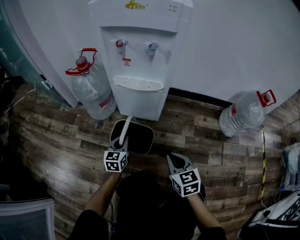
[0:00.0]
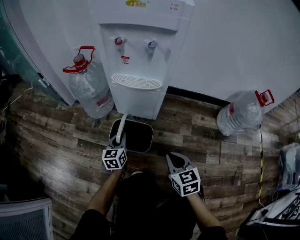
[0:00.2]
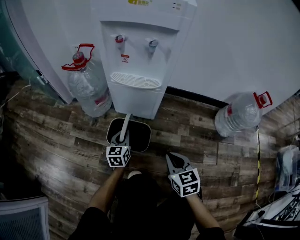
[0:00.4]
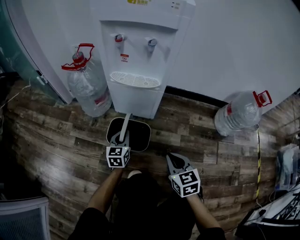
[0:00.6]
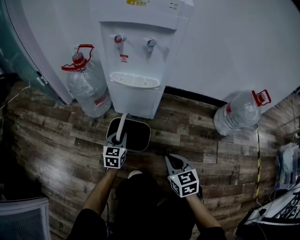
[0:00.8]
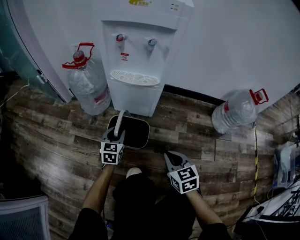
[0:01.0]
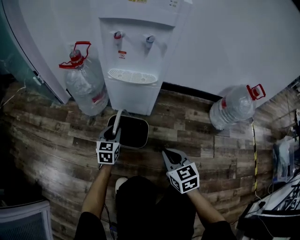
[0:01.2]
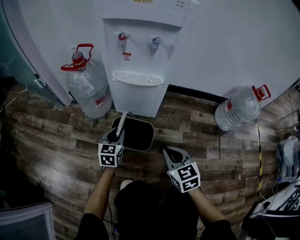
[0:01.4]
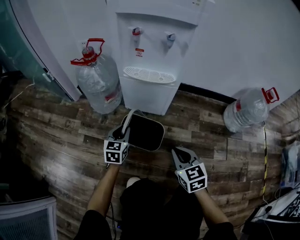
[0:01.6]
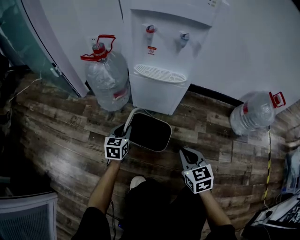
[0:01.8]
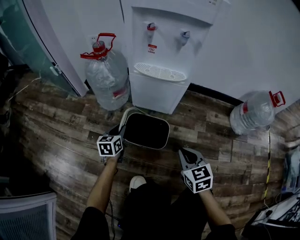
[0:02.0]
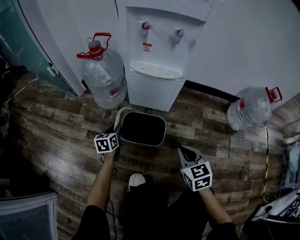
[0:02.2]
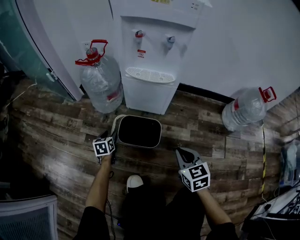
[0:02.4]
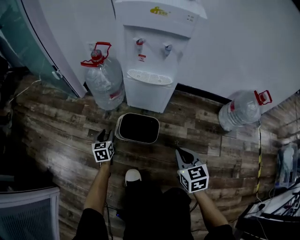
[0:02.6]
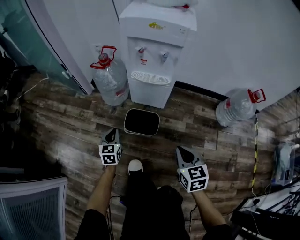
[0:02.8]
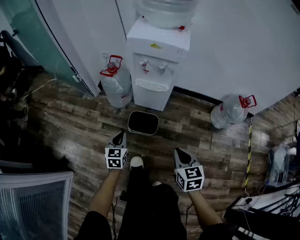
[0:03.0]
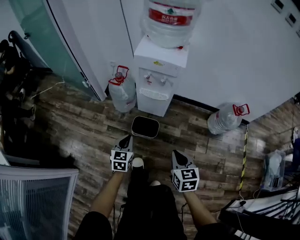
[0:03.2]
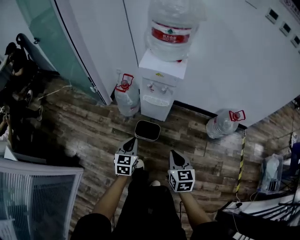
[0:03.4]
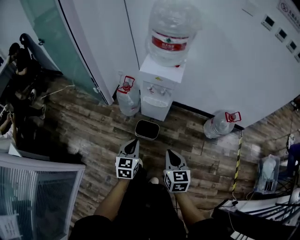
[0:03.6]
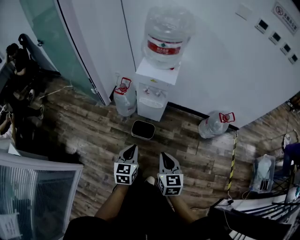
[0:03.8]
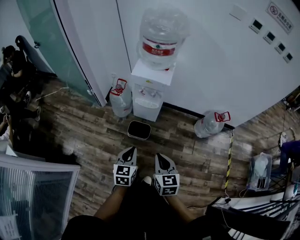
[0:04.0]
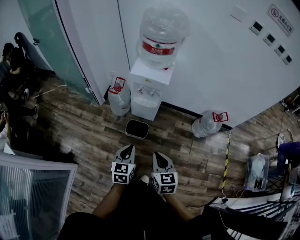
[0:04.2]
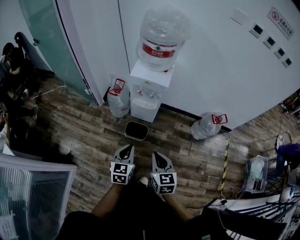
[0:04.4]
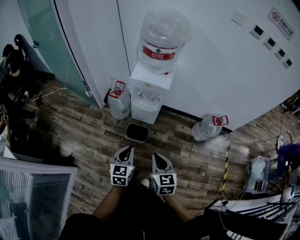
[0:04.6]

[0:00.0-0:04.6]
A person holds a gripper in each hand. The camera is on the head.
0:00.0 to 0:01.6: The grippers stay close to where they were, moving slightly.
0:01.6 to 0:03.0: The two grippers go approximately 30 cm upward and backward. The left gripper opens, then closes once more.
0:03.0 to 0:04.6: Both grippers travel together upward, approximately 30 cm.

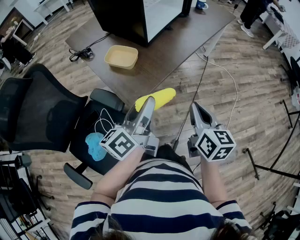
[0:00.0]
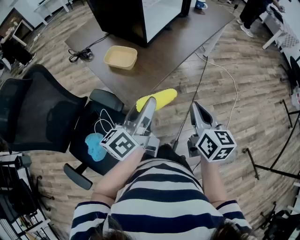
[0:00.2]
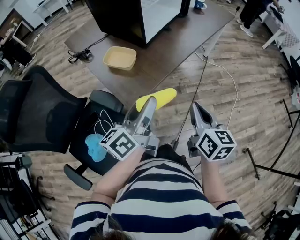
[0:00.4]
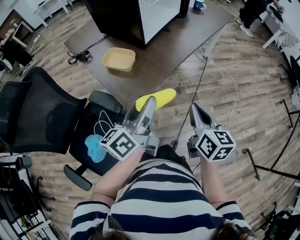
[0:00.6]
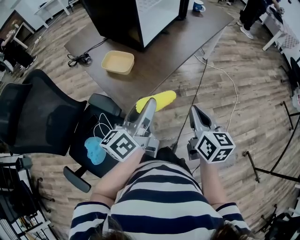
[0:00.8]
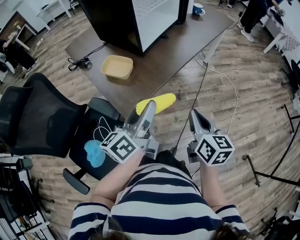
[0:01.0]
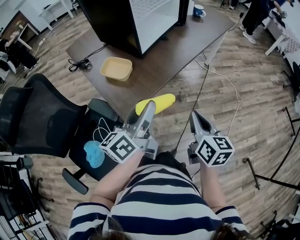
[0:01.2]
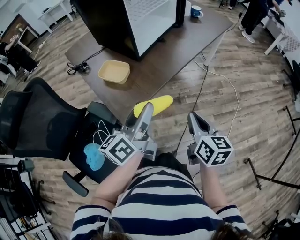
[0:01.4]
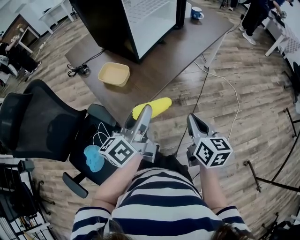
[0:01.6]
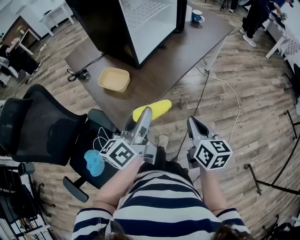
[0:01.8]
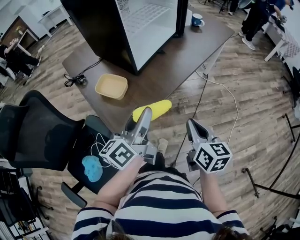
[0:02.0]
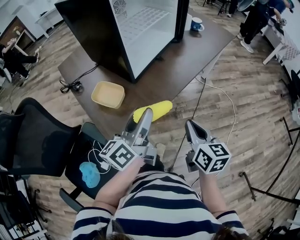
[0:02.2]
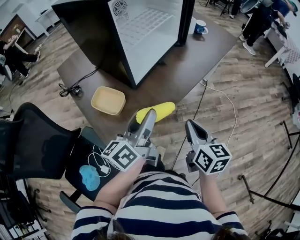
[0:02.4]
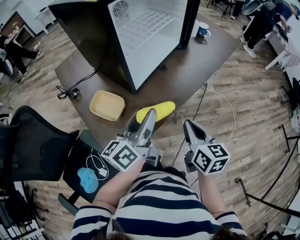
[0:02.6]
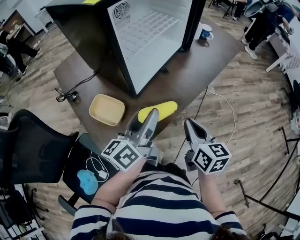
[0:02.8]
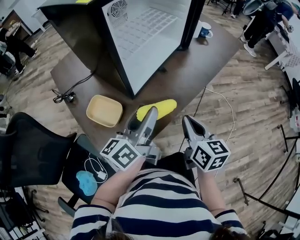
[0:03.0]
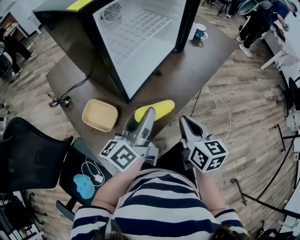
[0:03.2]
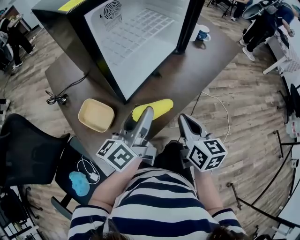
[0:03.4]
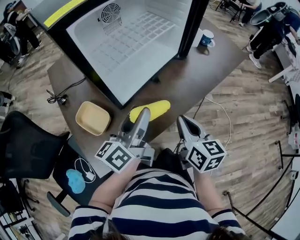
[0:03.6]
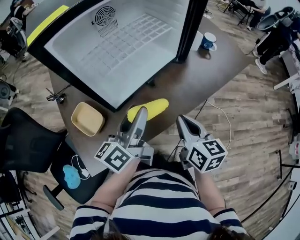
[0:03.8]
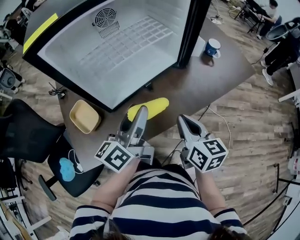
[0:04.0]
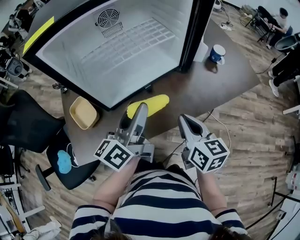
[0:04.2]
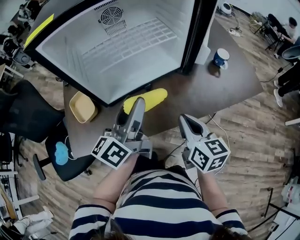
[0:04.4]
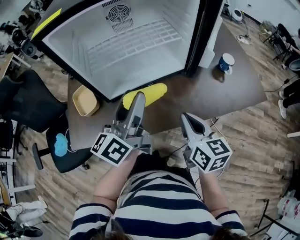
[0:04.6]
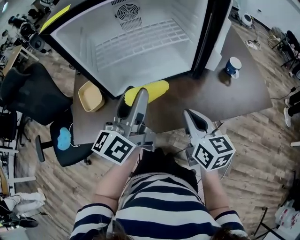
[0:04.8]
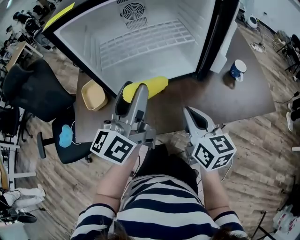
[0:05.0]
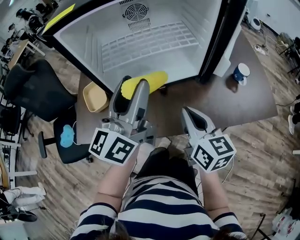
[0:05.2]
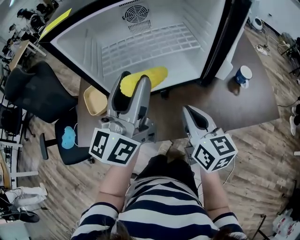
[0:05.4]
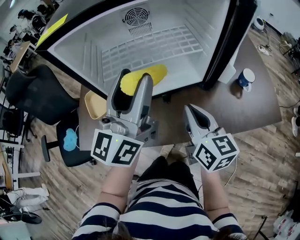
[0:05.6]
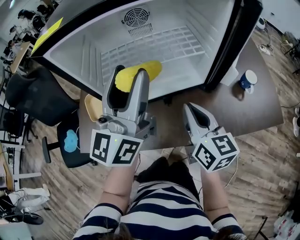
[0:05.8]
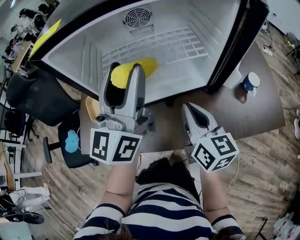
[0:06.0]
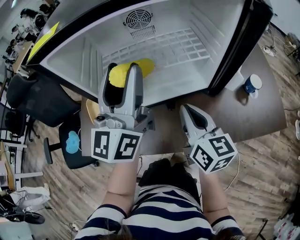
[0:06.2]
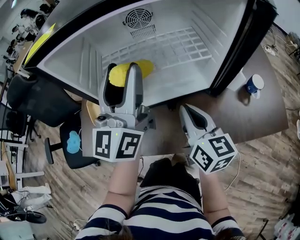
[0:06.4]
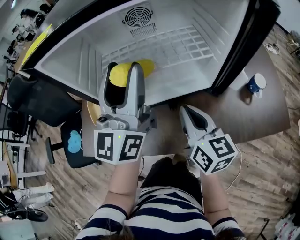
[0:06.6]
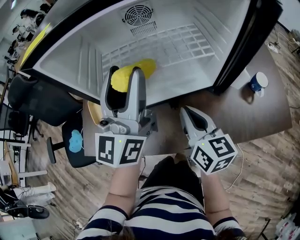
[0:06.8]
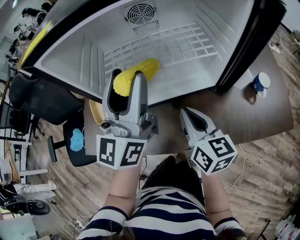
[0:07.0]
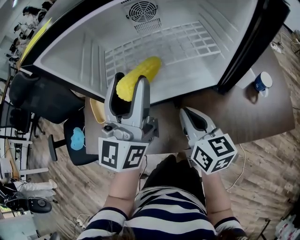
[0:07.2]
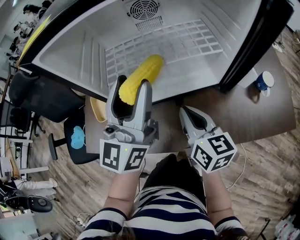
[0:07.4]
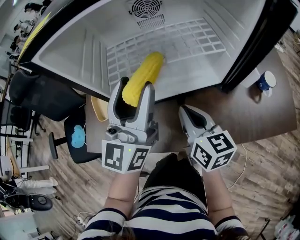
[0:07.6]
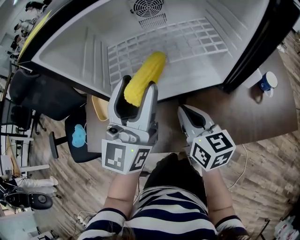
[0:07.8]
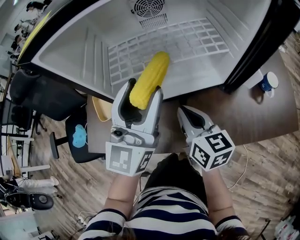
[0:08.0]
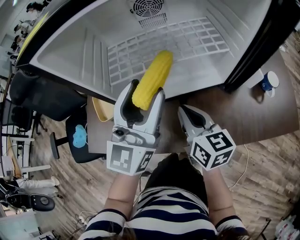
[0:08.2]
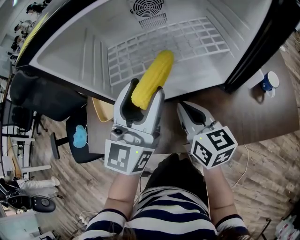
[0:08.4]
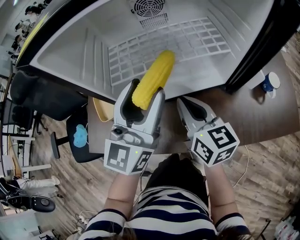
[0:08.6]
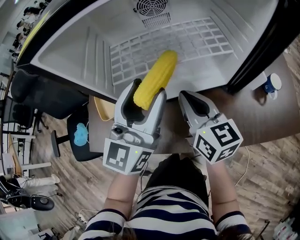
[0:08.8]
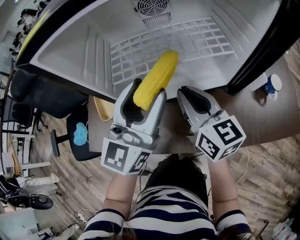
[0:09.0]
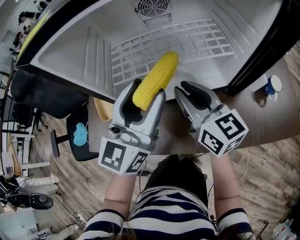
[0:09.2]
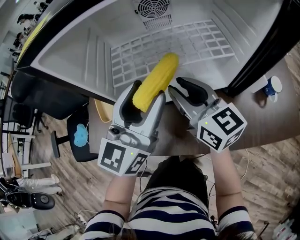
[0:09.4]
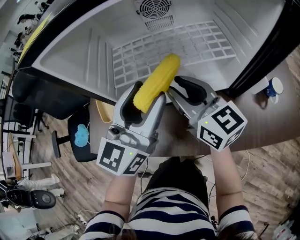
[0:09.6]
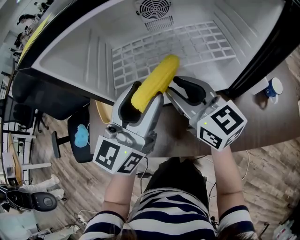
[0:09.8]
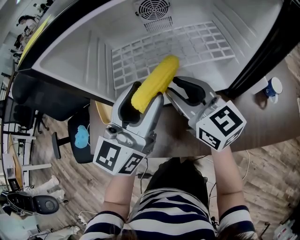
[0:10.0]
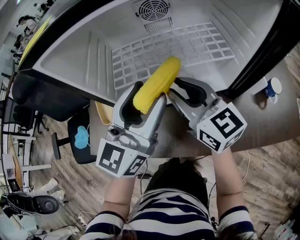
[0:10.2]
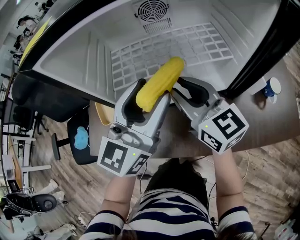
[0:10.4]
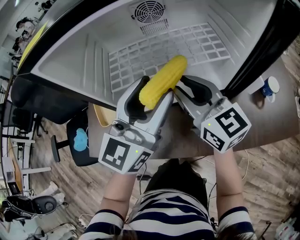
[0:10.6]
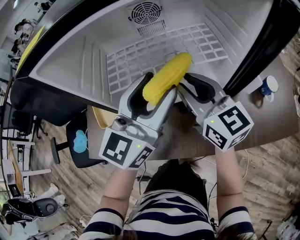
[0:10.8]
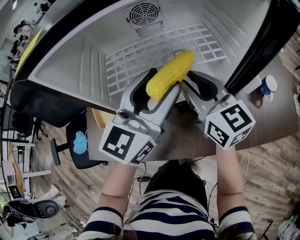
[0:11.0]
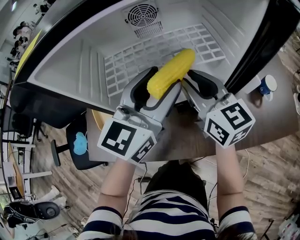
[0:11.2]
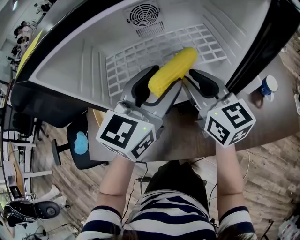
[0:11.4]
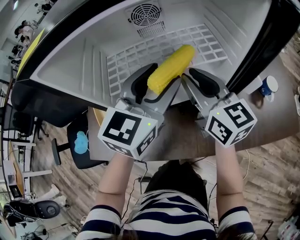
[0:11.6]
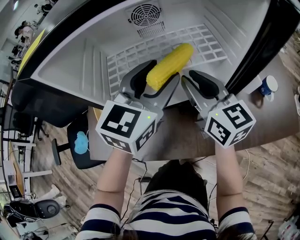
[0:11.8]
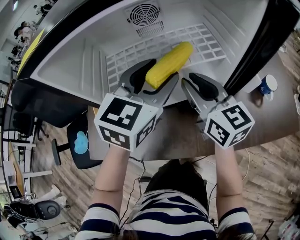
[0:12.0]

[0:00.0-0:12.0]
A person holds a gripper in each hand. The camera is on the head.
0:00.0 to 0:01.6: The left gripper moves about 5 cm; the right gripper goes about 5 cm to the right.
0:01.6 to 0:03.0: Both grippers travel together forward, roughly 25 cm.
0:03.0 to 0:04.4: The right gripper changes place by about 20 cm, and turns by approximately 30 degrees; the left gripper changes place by about 15 cm, and swivels roughly 30 degrees.
0:04.4 to 0:06.0: The right gripper is displaced forward by some 10 cm. Meanwhile the left gripper moves upward and forward, about 15 cm, and changes its angle by roughly 40 degrees.
0:06.0 to 0:07.6: Both grippers travel together downward, approximately 5 cm.
0:07.6 to 0:09.0: The right gripper changes place by approximately 5 cm.
0:09.0 to 0:10.4: The right gripper opens its fingers.
0:10.4 to 0:12.0: The right gripper goes some 5 cm to the right; the left gripper is displaced forward and to the right by approximately 10 cm, and turns by approximately 30 degrees.

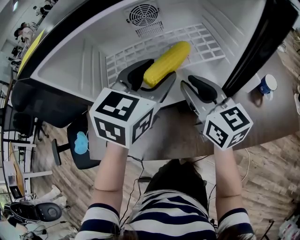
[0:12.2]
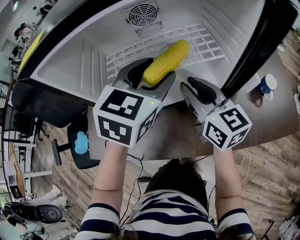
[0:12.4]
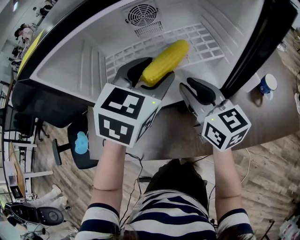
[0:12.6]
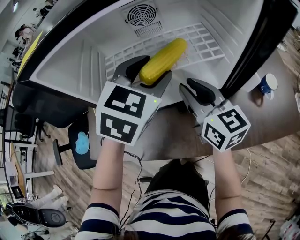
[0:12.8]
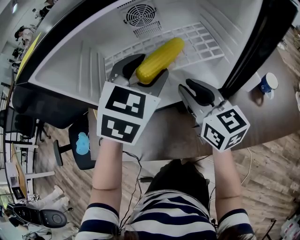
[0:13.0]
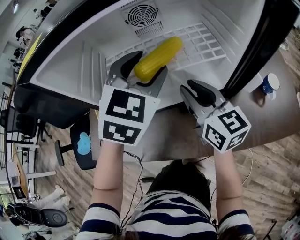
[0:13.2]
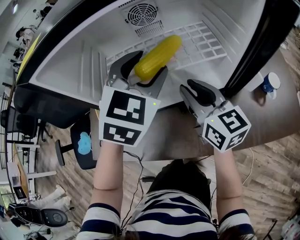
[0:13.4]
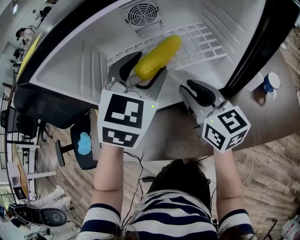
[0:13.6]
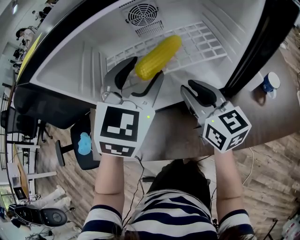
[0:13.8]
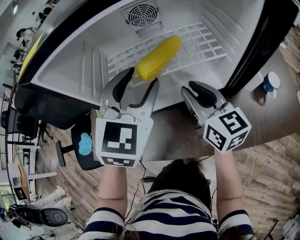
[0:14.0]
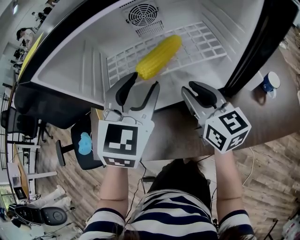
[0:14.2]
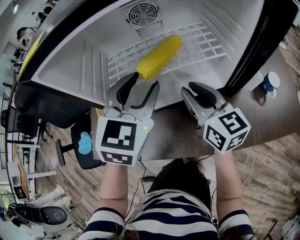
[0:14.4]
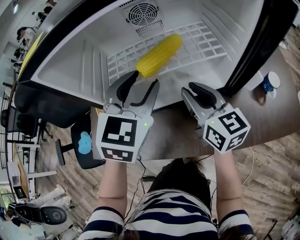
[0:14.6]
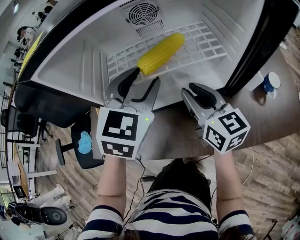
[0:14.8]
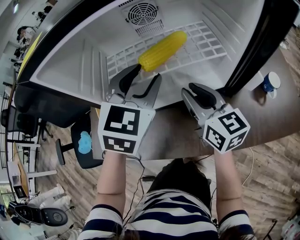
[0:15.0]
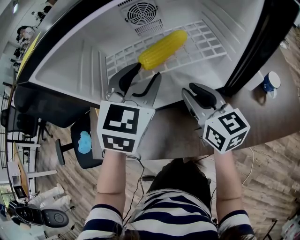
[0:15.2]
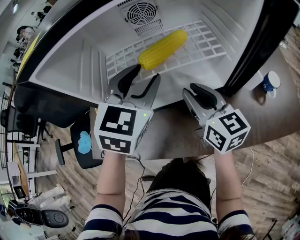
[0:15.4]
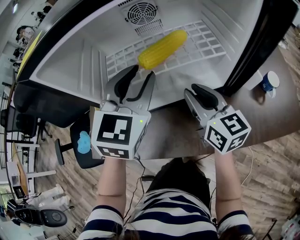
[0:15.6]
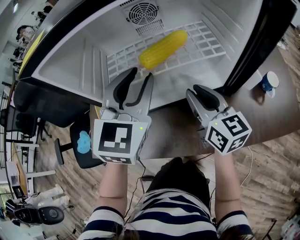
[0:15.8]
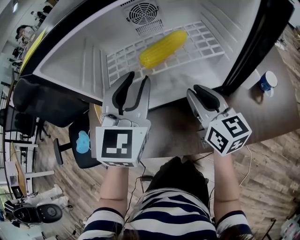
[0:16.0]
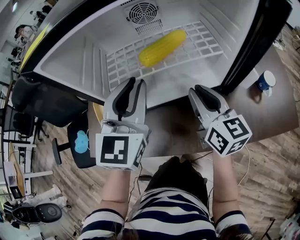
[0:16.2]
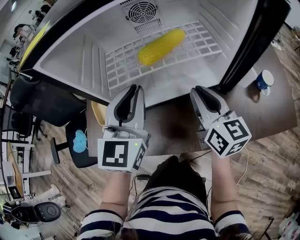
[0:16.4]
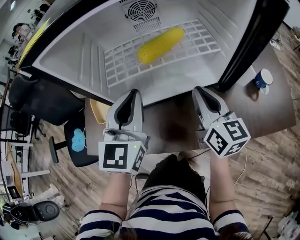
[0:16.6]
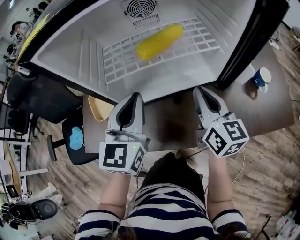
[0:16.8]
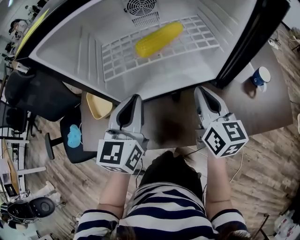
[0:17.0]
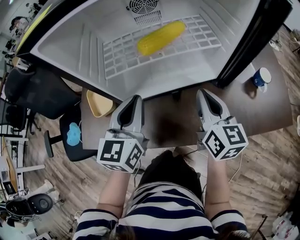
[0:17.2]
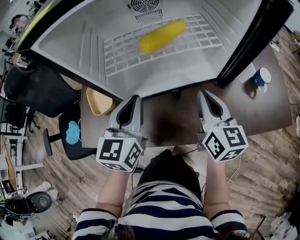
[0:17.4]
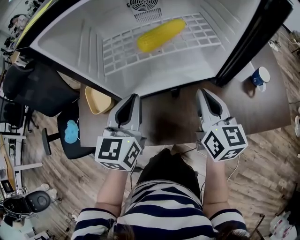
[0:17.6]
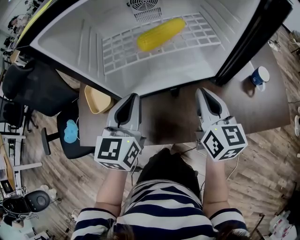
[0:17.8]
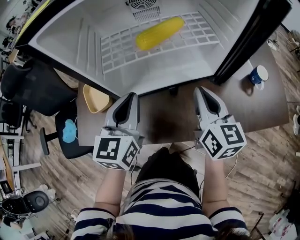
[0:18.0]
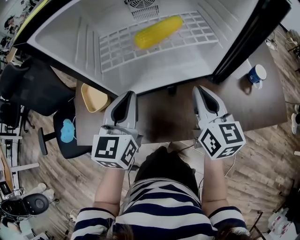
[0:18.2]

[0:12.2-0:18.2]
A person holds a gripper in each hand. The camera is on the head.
0:12.2 to 0:13.8: The left gripper rotates roughly 20 degrees.
0:13.8 to 0:15.2: The grippers stay close to where they were, moving slightly.
0:15.2 to 0:16.6: The left gripper heads backward, covering some 5 cm, and swivels roughly 20 degrees. The right gripper closes.
0:16.6 to 0:18.2: The left gripper travels downward by some 5 cm.

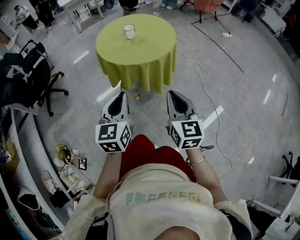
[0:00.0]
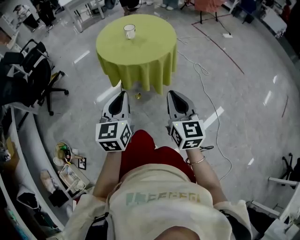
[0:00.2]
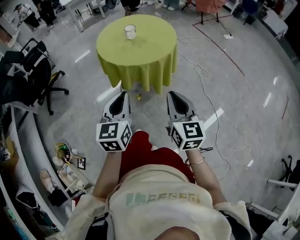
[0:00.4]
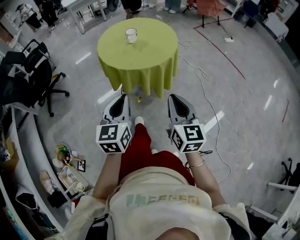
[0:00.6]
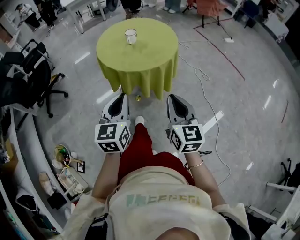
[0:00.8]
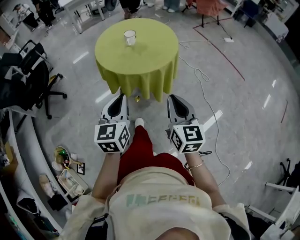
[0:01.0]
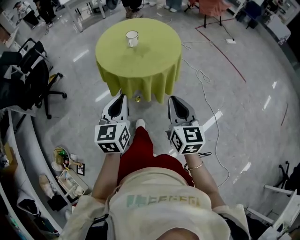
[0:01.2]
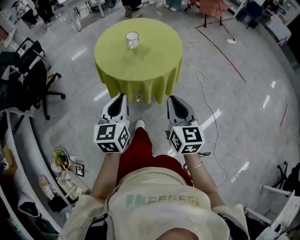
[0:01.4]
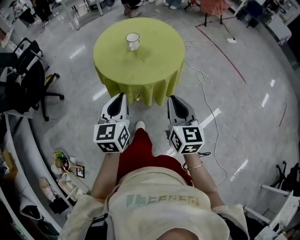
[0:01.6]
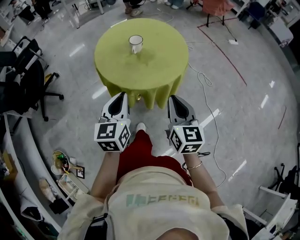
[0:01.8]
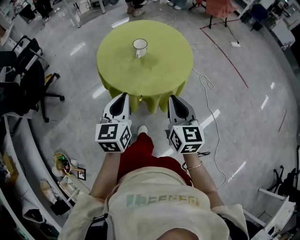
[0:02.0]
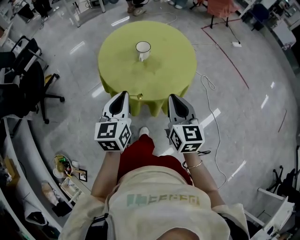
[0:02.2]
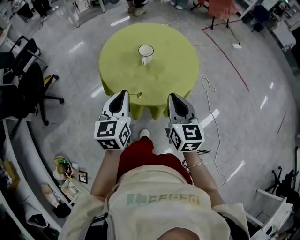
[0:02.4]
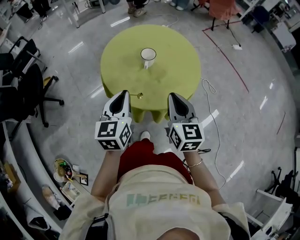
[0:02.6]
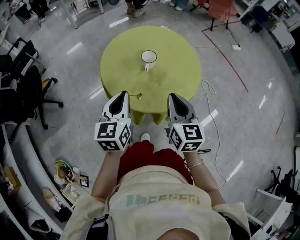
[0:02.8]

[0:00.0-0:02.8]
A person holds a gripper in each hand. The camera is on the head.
0:00.0 to 0:01.4: The grippers both shift forward by about 15 cm.
0:01.4 to 0:02.8: Both grippers move forward and to the left, some 25 cm.
